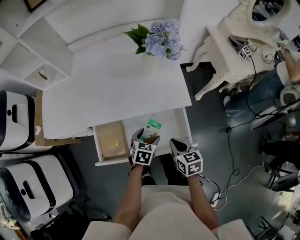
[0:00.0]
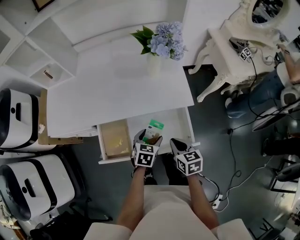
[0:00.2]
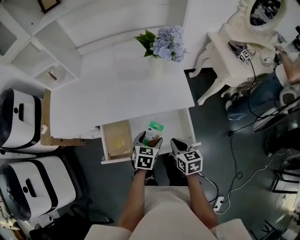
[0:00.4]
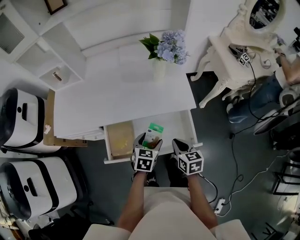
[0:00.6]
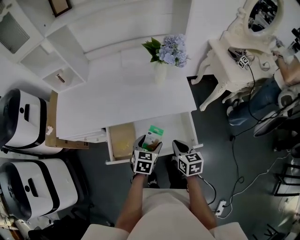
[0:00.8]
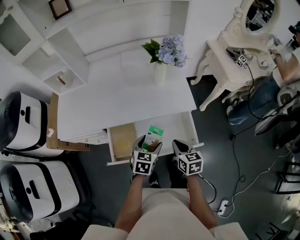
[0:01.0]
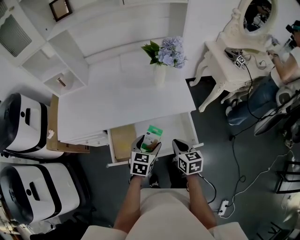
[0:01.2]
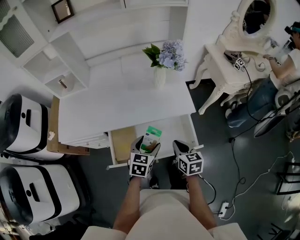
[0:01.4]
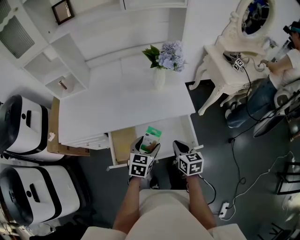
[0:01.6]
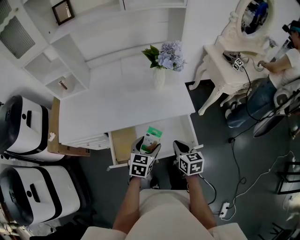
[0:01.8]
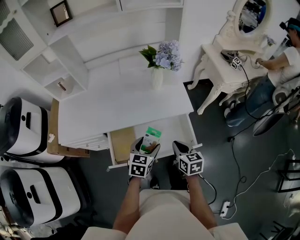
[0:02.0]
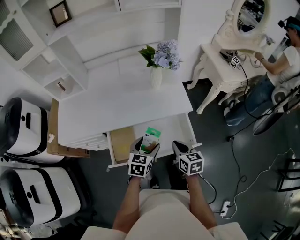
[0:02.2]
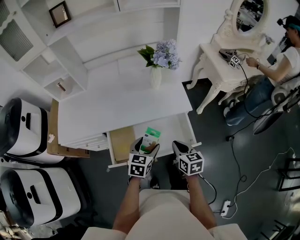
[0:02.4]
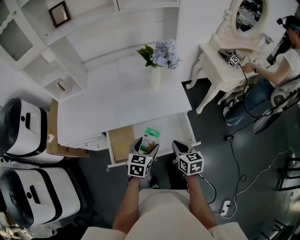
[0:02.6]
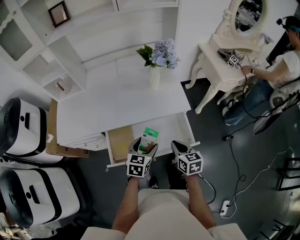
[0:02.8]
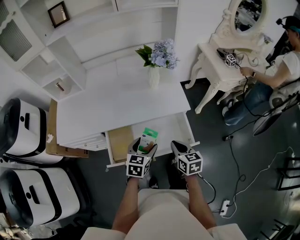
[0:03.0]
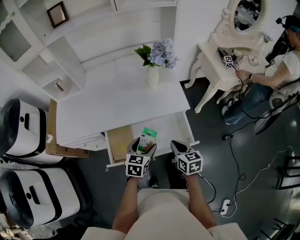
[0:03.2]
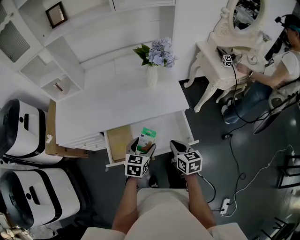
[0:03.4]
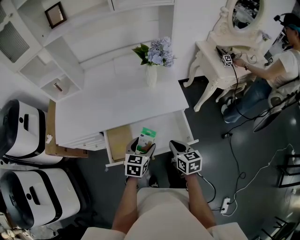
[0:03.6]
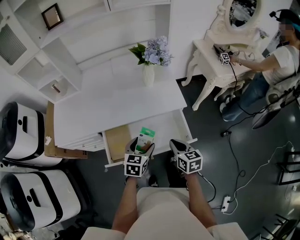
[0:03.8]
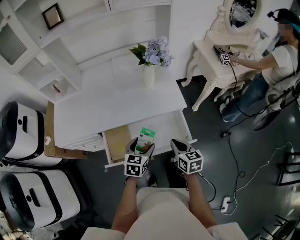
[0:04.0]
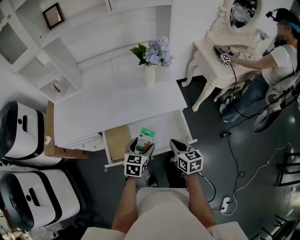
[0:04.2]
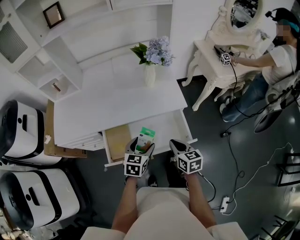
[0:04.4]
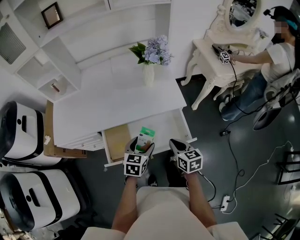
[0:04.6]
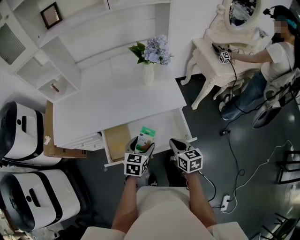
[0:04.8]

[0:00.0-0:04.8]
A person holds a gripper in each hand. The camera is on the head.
0:00.0 to 0:01.6: The left gripper is displaced upward and to the left by roughly 15 cm, while the right gripper travels upward by about 5 cm.
0:01.6 to 0:03.2: The grippers stay close to where they were, moving slightly.
0:03.2 to 0:04.8: Both grippers stay put.

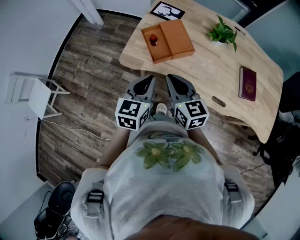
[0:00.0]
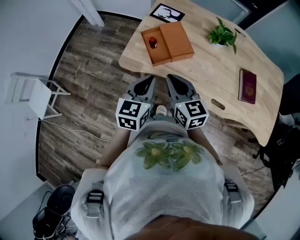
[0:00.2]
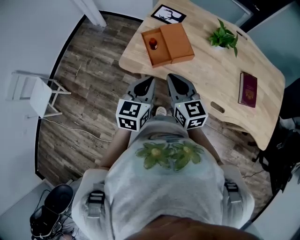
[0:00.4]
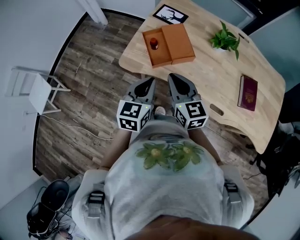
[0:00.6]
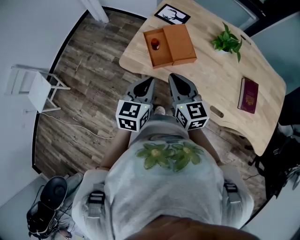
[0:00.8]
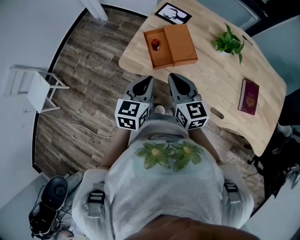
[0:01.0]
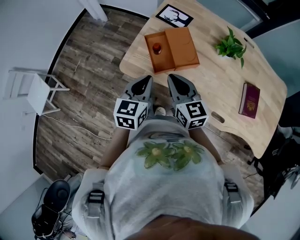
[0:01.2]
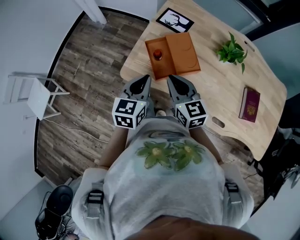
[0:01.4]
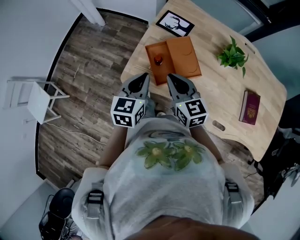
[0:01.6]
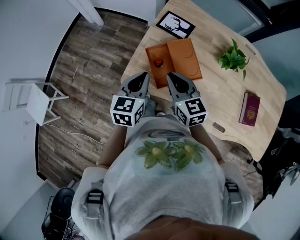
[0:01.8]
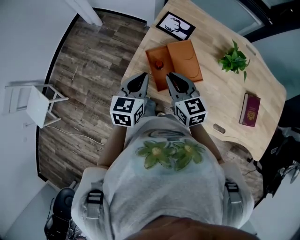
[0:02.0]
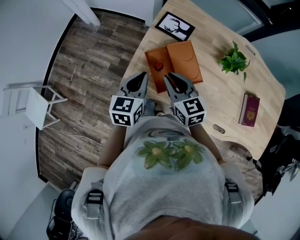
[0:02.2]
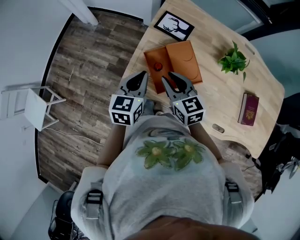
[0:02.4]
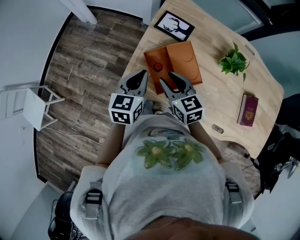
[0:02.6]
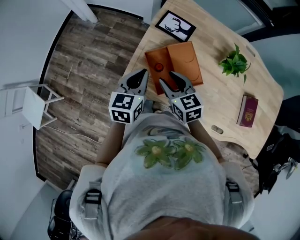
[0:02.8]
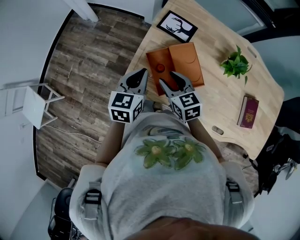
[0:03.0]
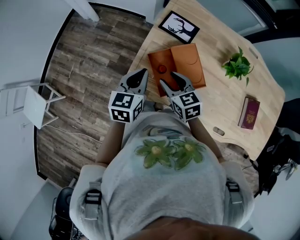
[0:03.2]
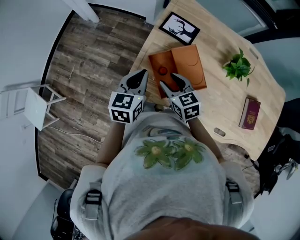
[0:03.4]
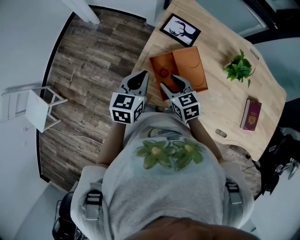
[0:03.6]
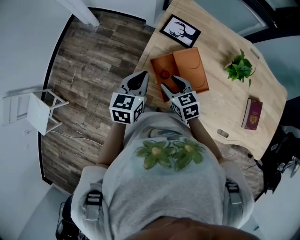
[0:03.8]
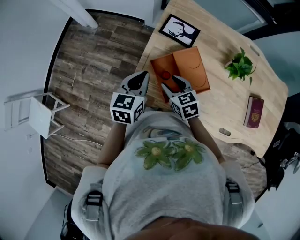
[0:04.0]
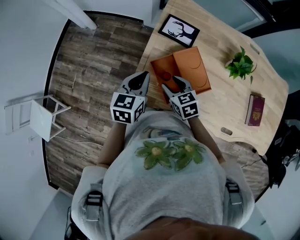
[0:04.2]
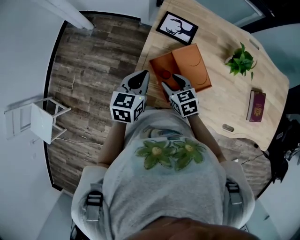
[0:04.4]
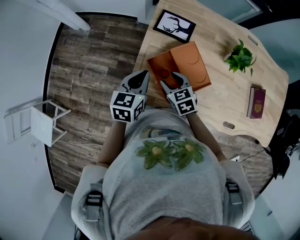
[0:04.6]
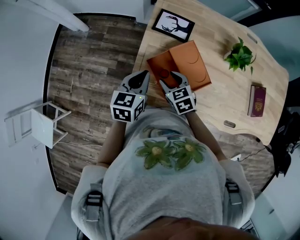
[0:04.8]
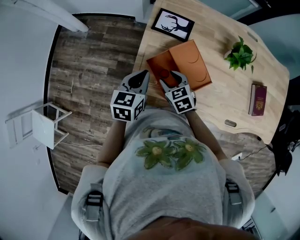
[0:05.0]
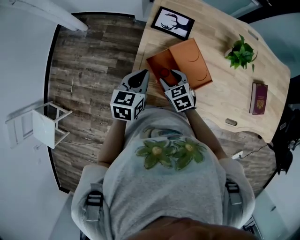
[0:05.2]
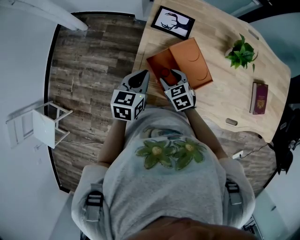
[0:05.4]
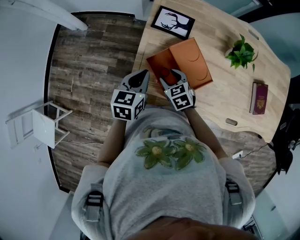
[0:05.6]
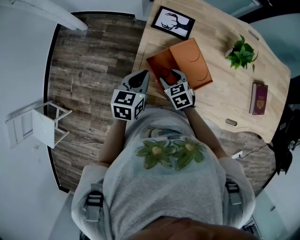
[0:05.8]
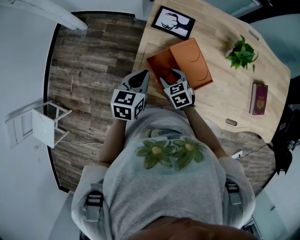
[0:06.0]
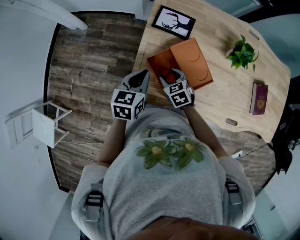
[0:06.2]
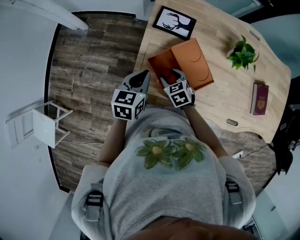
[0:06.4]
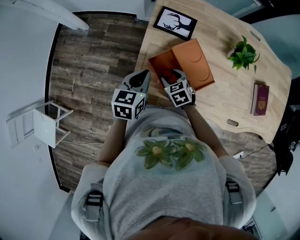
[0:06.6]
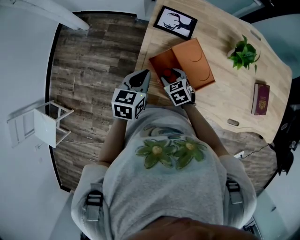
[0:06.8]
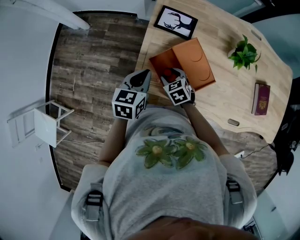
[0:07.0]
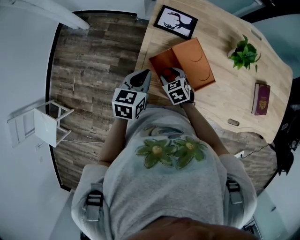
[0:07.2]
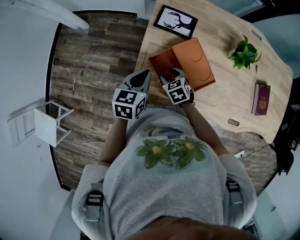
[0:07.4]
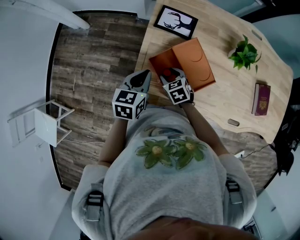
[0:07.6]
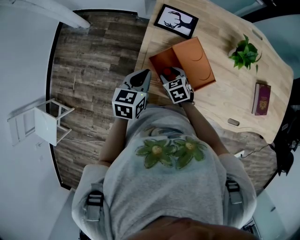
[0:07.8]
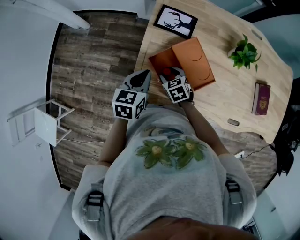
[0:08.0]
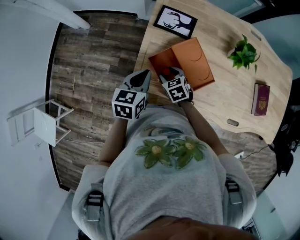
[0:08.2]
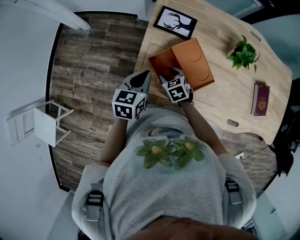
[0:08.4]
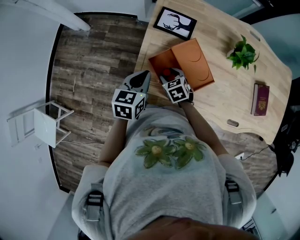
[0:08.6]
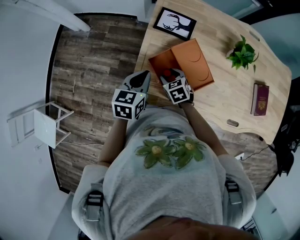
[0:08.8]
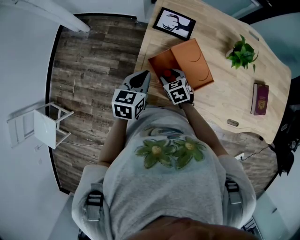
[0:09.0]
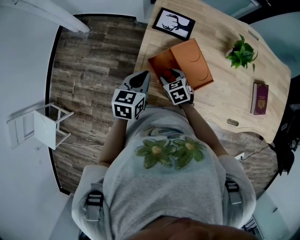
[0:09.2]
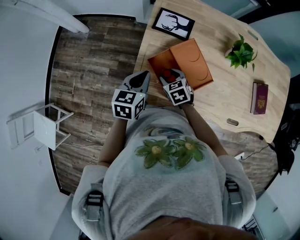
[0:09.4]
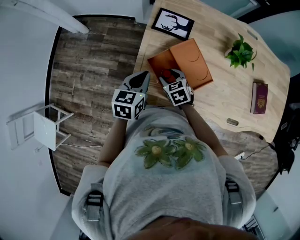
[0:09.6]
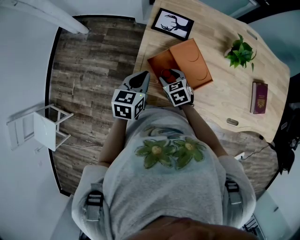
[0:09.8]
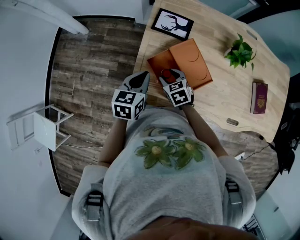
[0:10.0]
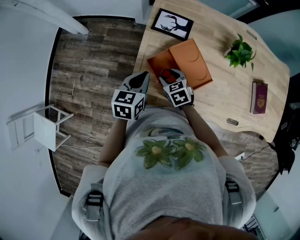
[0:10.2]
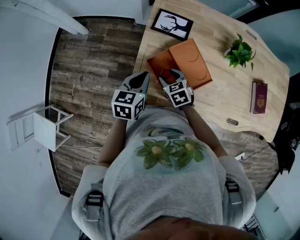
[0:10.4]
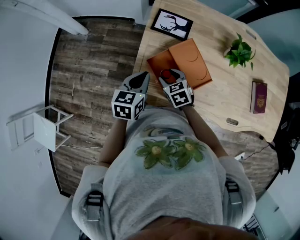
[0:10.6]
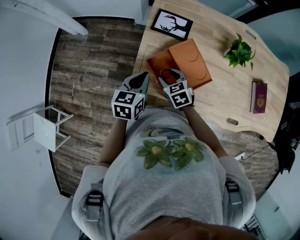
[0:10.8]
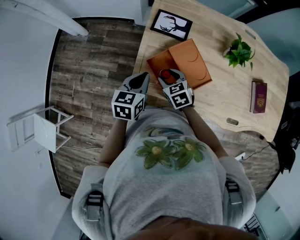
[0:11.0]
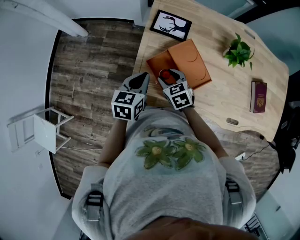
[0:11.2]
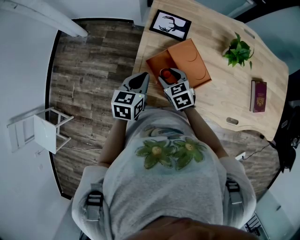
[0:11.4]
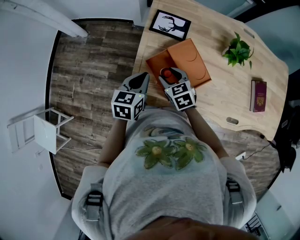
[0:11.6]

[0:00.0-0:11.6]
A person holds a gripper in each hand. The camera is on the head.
0:00.0 to 0:01.4: The two grippers go some 10 cm forward.
0:01.4 to 0:02.8: The left gripper heads forward, covering about 15 cm; the right gripper is displaced forward and downward by roughly 10 cm, and opens.
0:02.8 to 0:04.4: The left gripper is displaced forward by some 5 cm. Meanwhile the right gripper is displaced downward by roughly 10 cm.
0:04.4 to 0:05.8: The right gripper goes approximately 5 cm downward.
0:05.8 to 0:07.2: The grippers stay close to where they were, moving slightly.
0:07.2 to 0:08.8: Both grippers stay about where they are.
0:08.8 to 0:10.2: The grippers move only a little.
0:10.2 to 0:11.6: The grippers stay close to where they were, moving slightly.

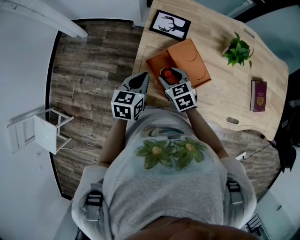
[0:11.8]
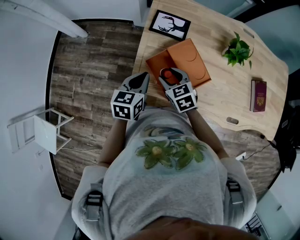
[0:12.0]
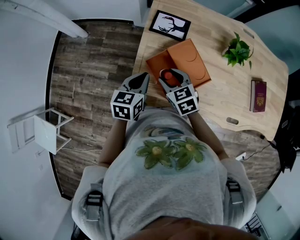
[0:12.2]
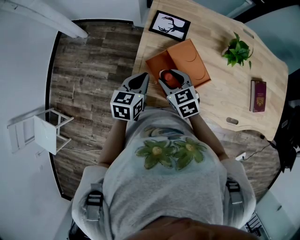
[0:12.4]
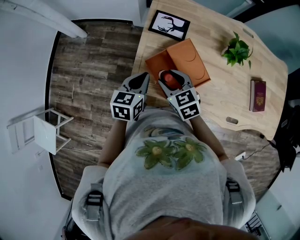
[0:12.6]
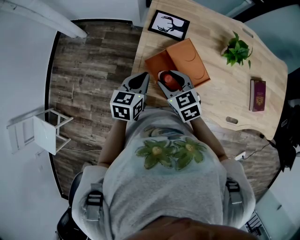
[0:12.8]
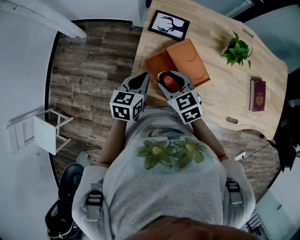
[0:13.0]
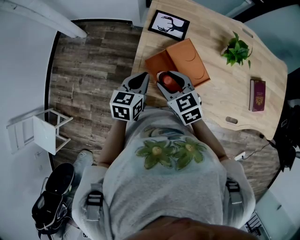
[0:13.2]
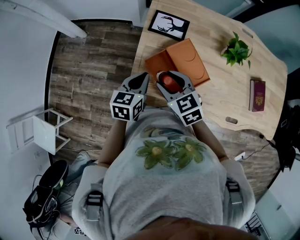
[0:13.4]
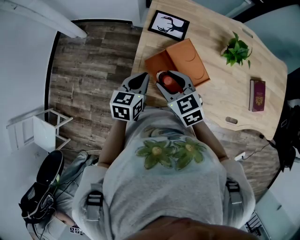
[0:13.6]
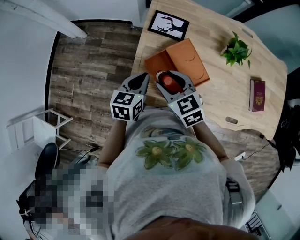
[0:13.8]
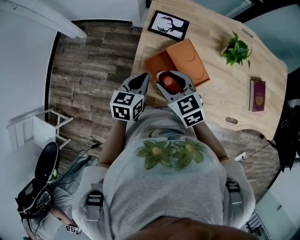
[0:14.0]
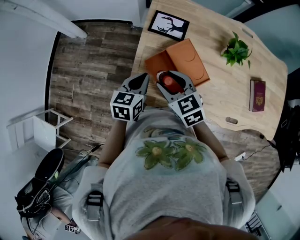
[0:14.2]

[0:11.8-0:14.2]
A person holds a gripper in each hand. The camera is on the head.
0:11.8 to 0:13.0: The right gripper heads upward, covering some 5 cm.
0:13.0 to 0:14.2: There are only small adjustments of the grippers.

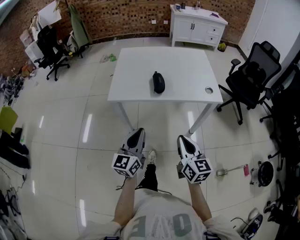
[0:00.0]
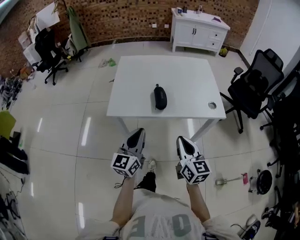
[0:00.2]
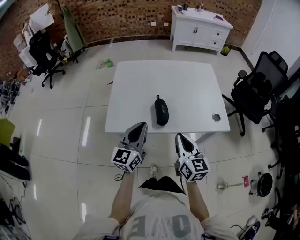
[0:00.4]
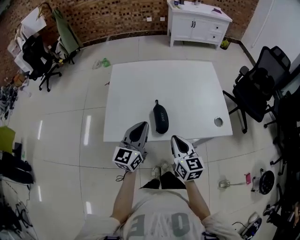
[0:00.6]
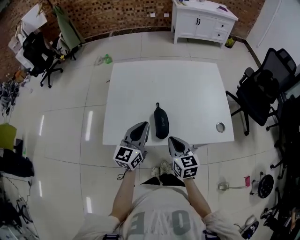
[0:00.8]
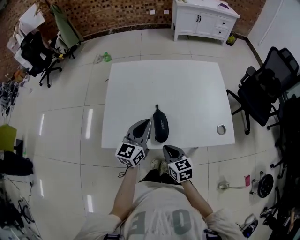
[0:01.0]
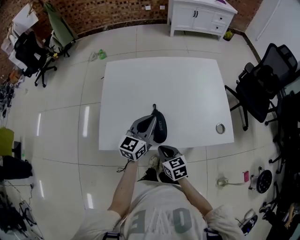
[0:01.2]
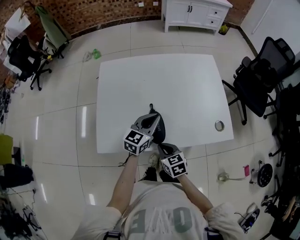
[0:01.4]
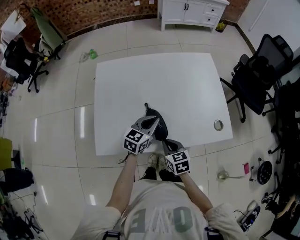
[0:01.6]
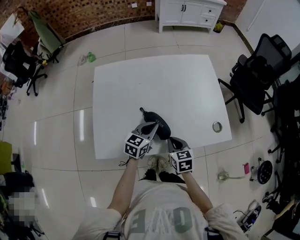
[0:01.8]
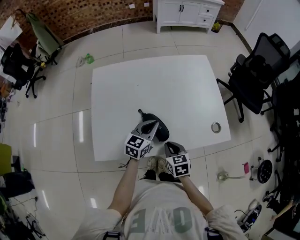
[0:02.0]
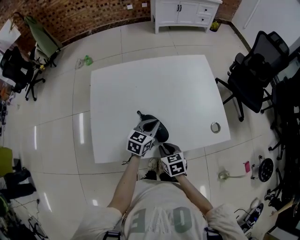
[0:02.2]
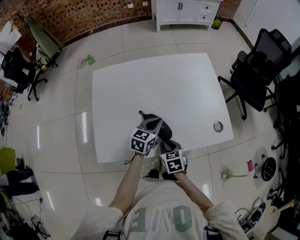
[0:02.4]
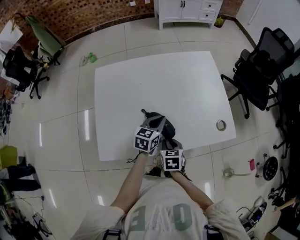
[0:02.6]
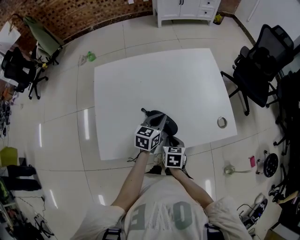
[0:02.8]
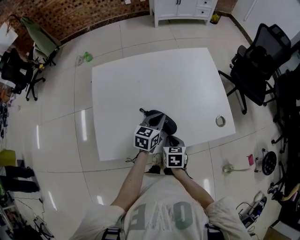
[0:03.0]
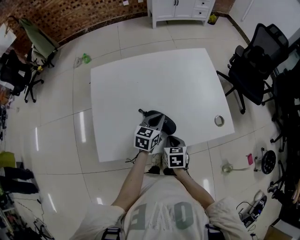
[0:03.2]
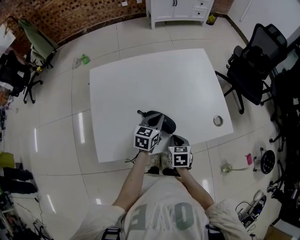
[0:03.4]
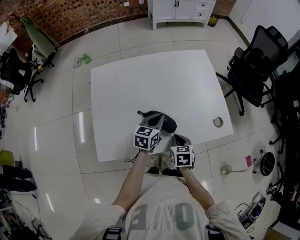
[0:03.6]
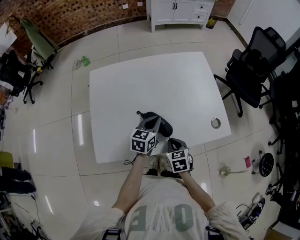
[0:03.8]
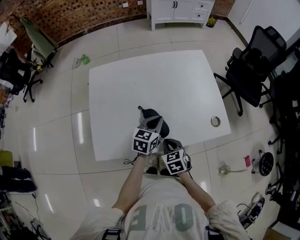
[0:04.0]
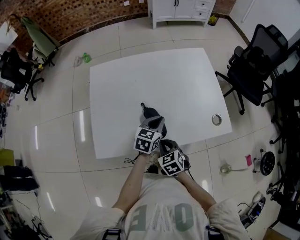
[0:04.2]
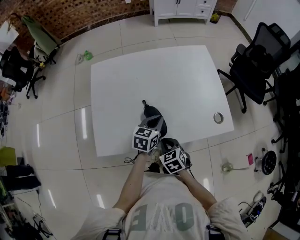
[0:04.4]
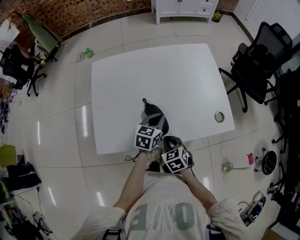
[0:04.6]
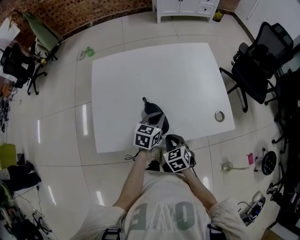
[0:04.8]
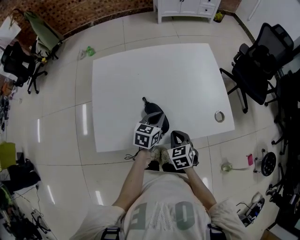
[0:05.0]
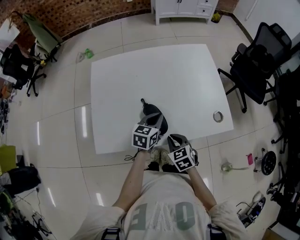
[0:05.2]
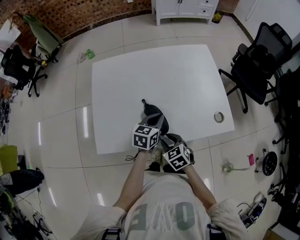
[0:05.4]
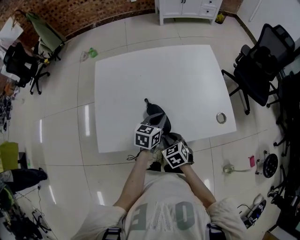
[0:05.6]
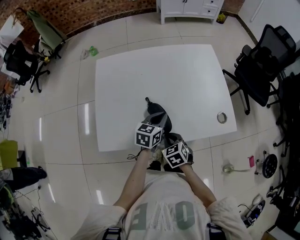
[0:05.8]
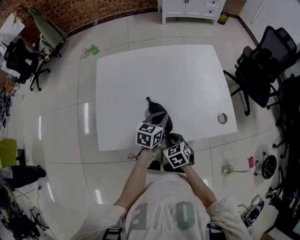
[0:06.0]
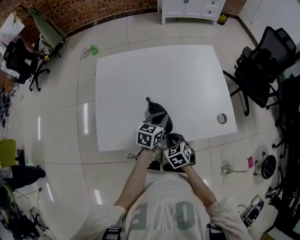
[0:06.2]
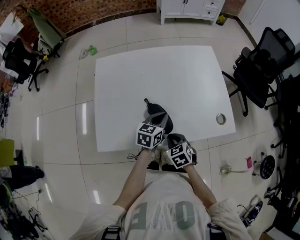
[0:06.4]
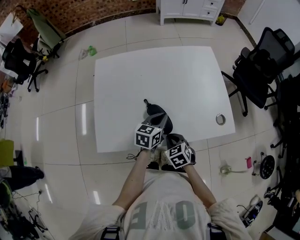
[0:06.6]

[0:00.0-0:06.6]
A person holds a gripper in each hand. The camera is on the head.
0:00.0 to 0:01.6: Both grippers move forward, roughly 40 cm. The left gripper rotates roughly 40 degrees, while the right gripper tips its fingers downward by roughly 30 degrees.
0:01.6 to 0:03.2: The right gripper rotates some 20 degrees.
0:03.2 to 0:05.0: The right gripper swivels approximately 20 degrees.
0:05.0 to 0:06.6: The right gripper opens, then closes again.
